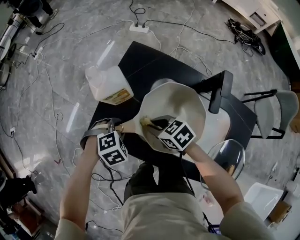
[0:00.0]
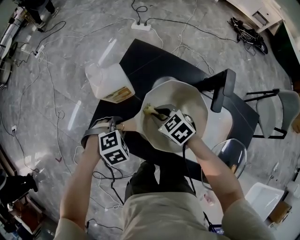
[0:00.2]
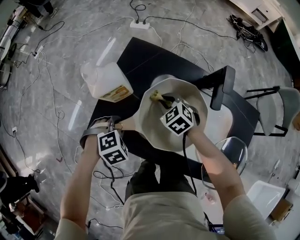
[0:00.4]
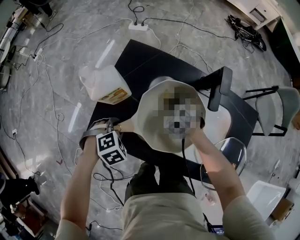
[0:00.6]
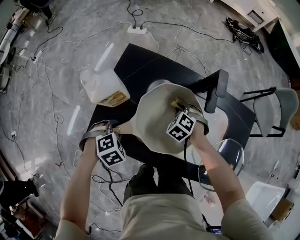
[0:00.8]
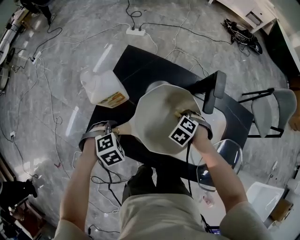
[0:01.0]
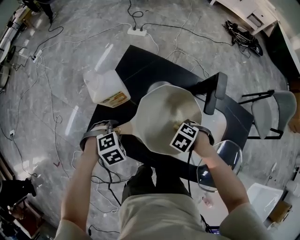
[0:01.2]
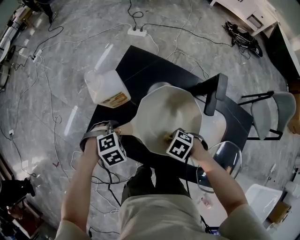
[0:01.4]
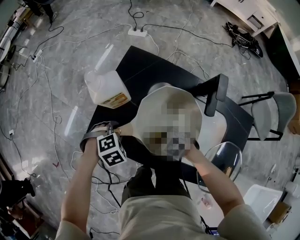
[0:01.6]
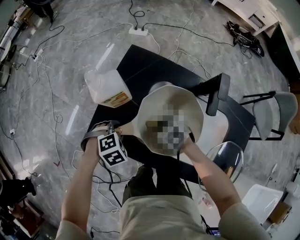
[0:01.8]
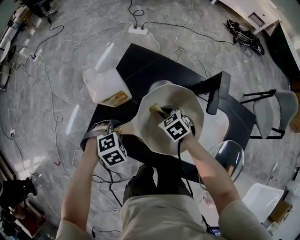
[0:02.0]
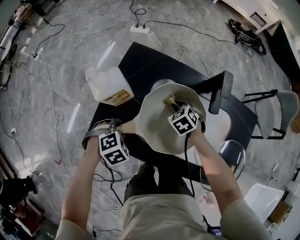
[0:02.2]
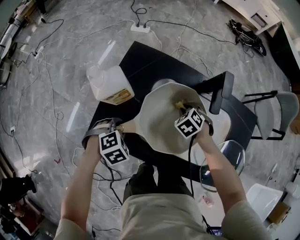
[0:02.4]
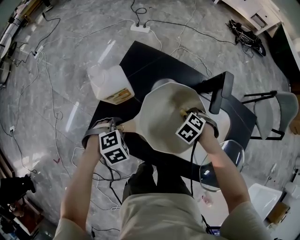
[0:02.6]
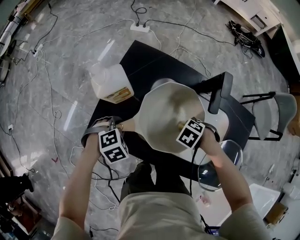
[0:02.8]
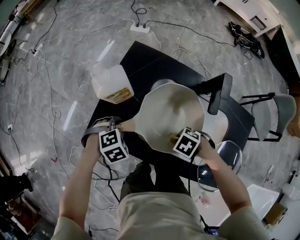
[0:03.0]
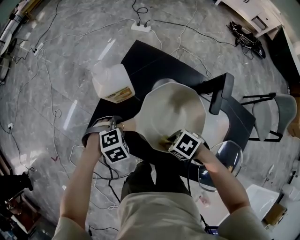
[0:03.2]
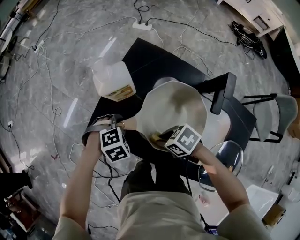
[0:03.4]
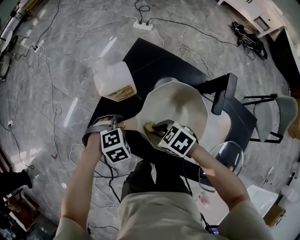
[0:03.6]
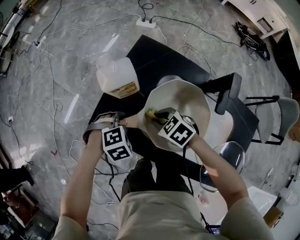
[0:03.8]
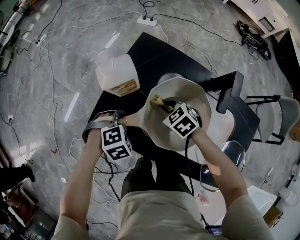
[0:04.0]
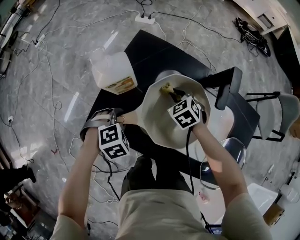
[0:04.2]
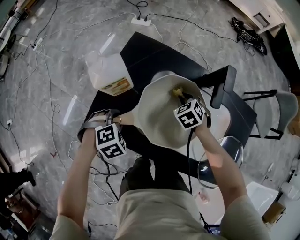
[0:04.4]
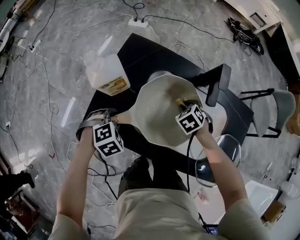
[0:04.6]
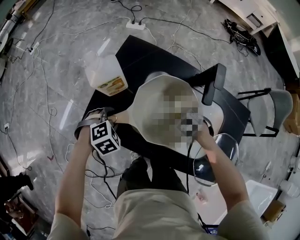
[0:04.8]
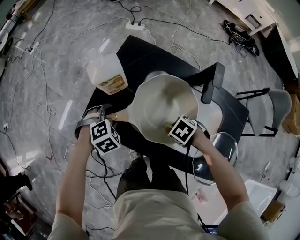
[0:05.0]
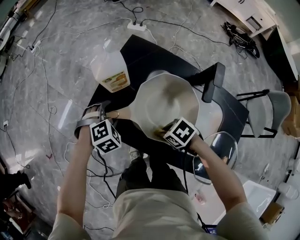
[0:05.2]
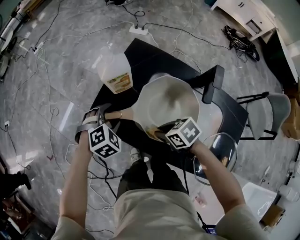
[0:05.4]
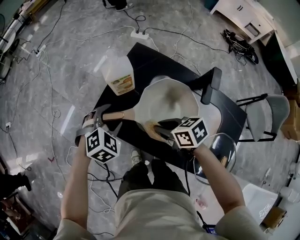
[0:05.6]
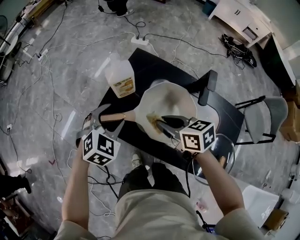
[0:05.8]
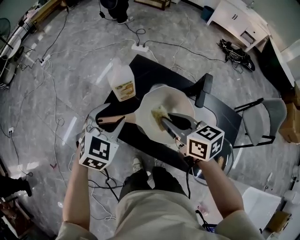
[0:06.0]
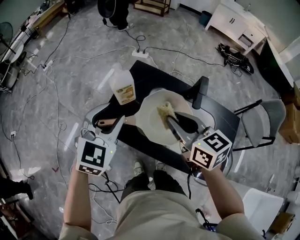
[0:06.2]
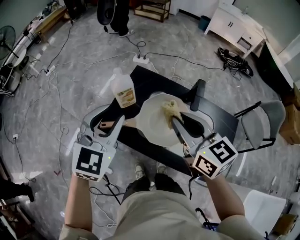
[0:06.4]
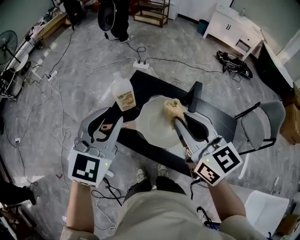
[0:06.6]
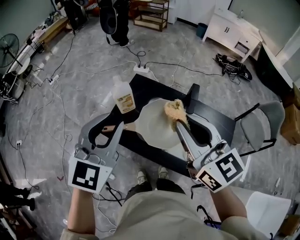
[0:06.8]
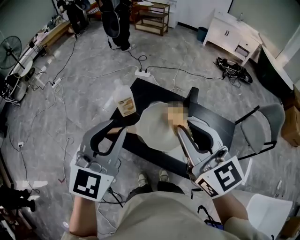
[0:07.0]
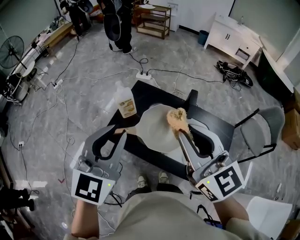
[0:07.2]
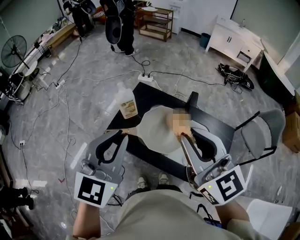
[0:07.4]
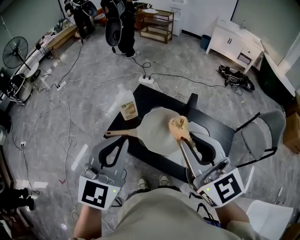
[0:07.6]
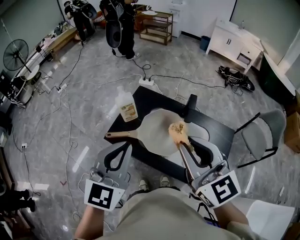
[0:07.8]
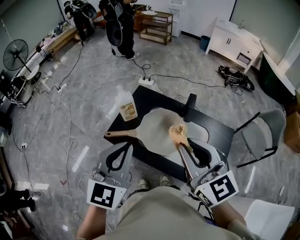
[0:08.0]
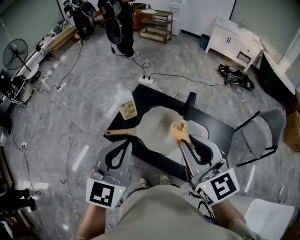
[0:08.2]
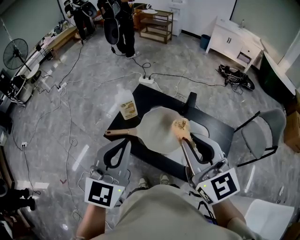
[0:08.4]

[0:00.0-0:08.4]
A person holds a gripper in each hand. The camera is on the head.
0:00.0 to 0:01.4: The right gripper changes place by about 15 cm, and tilts its fingers about 30 degrees downward.
0:02.8 to 0:04.2: The right gripper shifts by some 15 cm, and changes its angle by roughly 40 degrees.
0:04.2 to 0:05.6: The right gripper changes place by roughly 20 cm, and rotates about 40 degrees. The left gripper shifts some 10 cm upward, rotates some 20 degrees, and opens its fingers.
0:05.6 to 0:07.0: The grippers both shift upward by approximately 35 cm. The left gripper tips its fingers upward by some 40 degrees, and closes up. Meanwhile the right gripper points its fingers about 40 degrees further upward.
0:07.0 to 0:08.4: The left gripper travels backward by roughly 5 cm, and closes its fingers, while the right gripper moves roughly 5 cm.

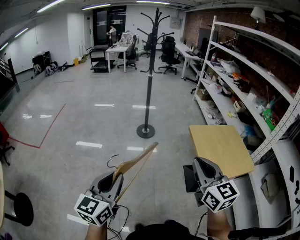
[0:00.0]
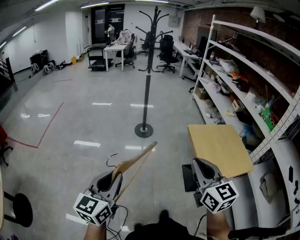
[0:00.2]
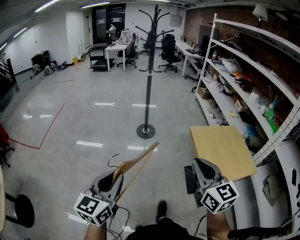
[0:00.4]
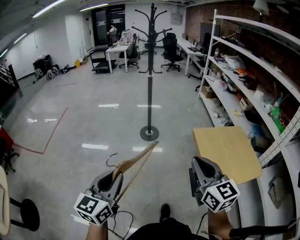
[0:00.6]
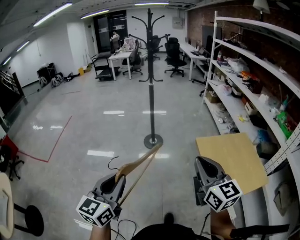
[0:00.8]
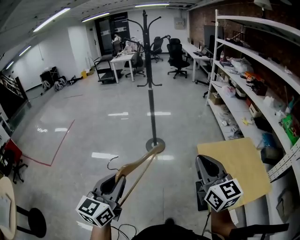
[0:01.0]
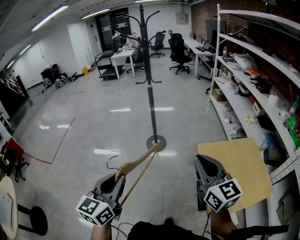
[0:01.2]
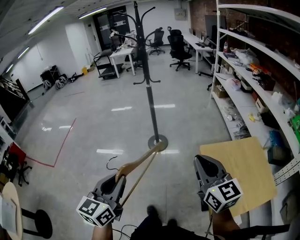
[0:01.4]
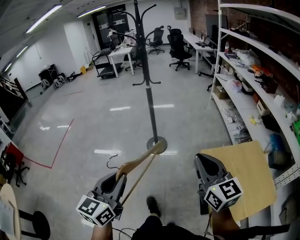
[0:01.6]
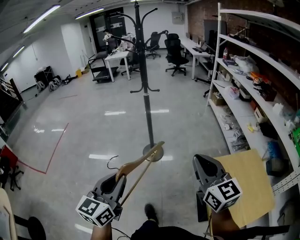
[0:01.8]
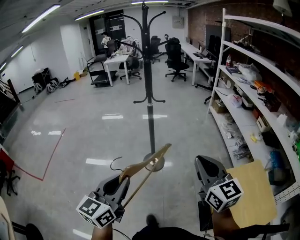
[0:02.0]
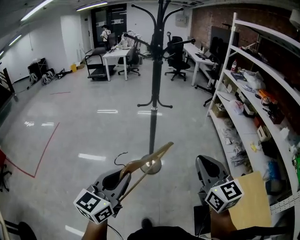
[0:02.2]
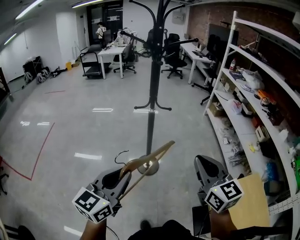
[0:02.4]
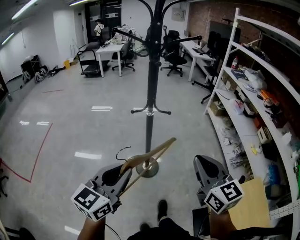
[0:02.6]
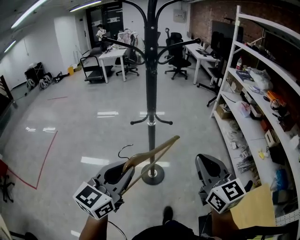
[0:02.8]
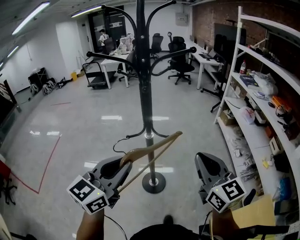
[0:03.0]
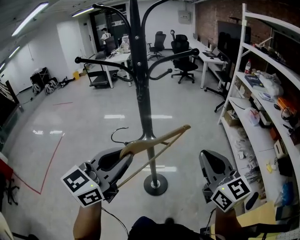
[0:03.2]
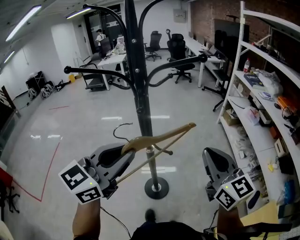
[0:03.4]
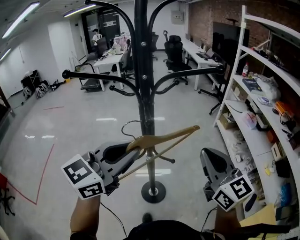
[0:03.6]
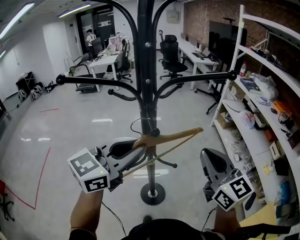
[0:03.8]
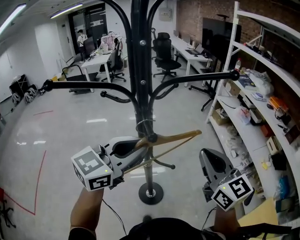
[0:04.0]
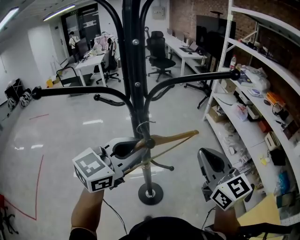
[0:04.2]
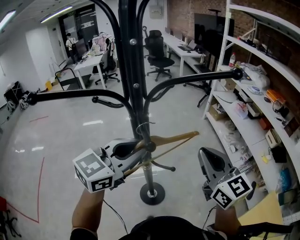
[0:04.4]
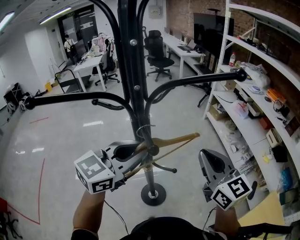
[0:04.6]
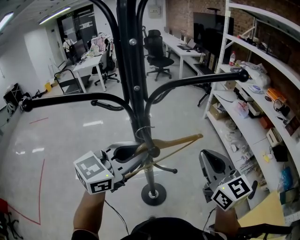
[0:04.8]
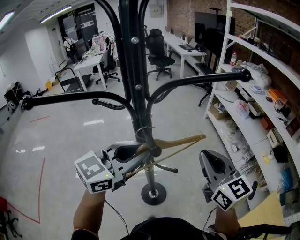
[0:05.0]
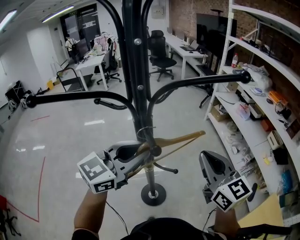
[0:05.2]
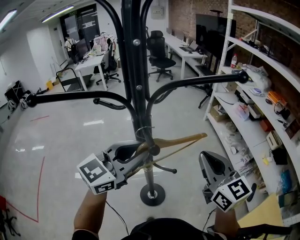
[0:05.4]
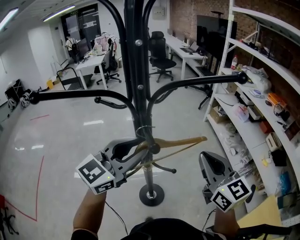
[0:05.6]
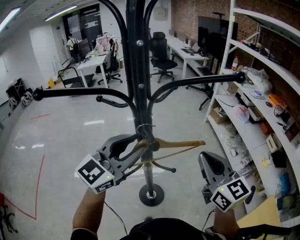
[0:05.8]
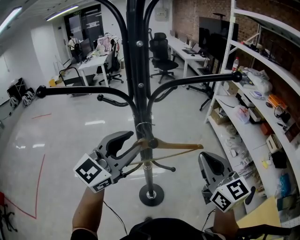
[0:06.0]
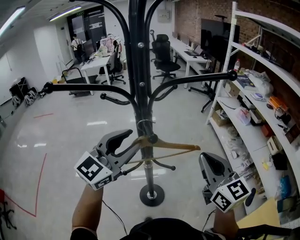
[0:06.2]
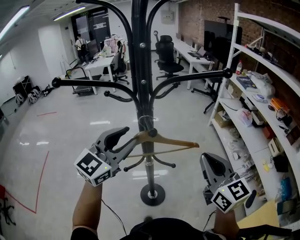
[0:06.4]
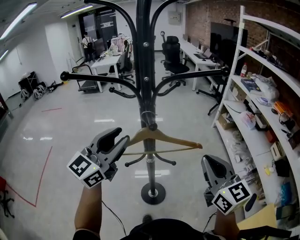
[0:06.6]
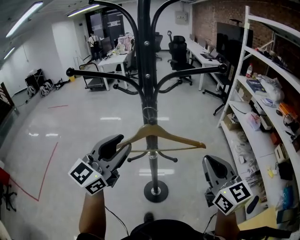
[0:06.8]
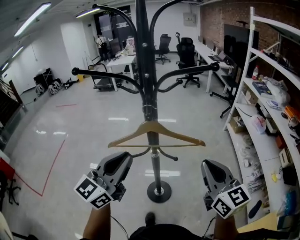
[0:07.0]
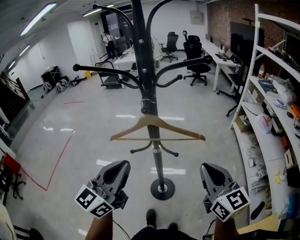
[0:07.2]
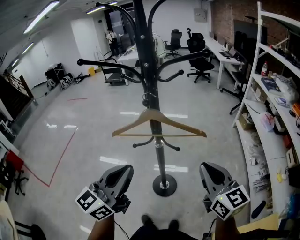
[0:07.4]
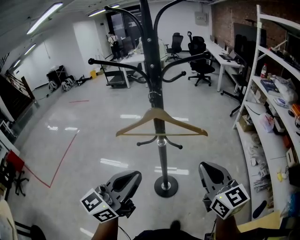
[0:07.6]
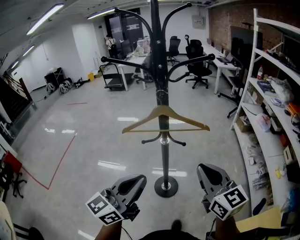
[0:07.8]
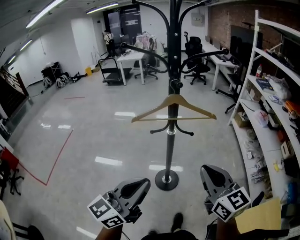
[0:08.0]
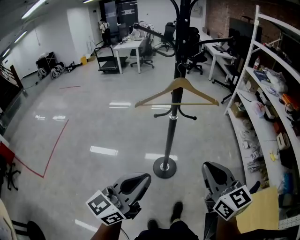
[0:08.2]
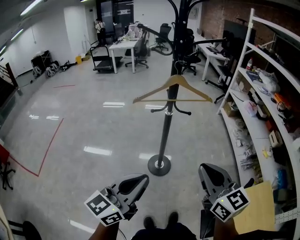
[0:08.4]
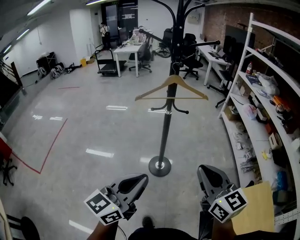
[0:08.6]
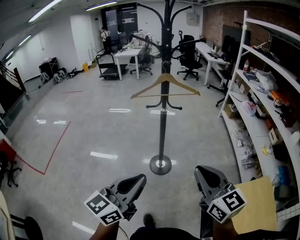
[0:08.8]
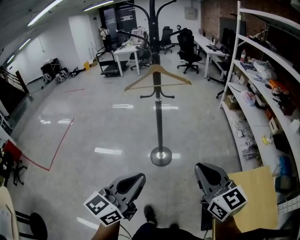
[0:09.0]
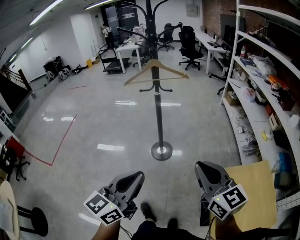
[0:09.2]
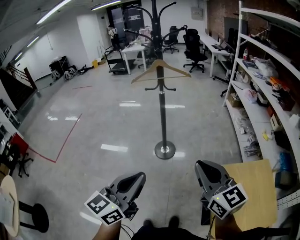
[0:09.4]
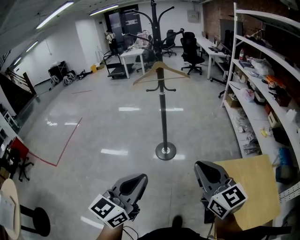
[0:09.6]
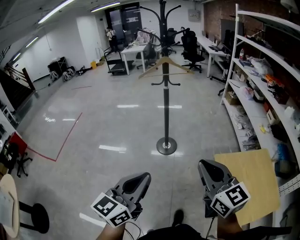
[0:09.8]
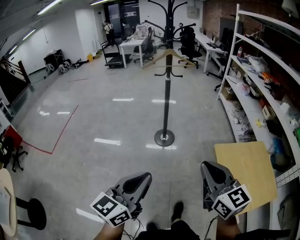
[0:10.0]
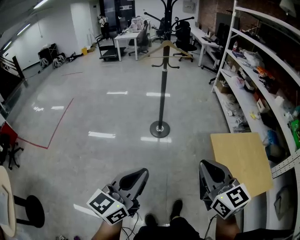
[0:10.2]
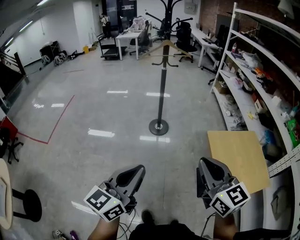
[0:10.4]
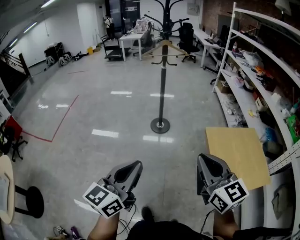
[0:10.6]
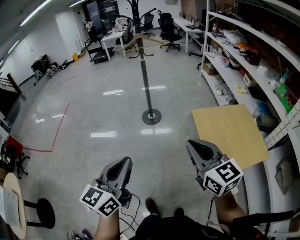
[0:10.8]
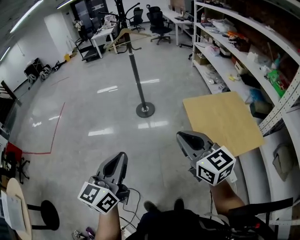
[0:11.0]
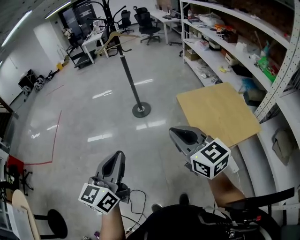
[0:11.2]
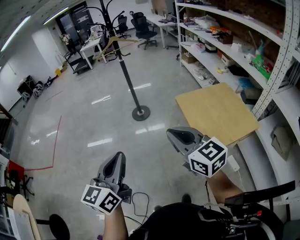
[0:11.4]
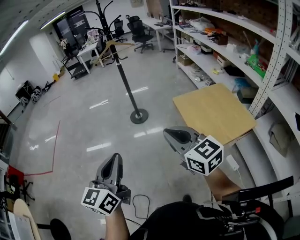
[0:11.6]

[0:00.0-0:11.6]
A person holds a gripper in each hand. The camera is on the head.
0:00.0 to 0:01.4: The grippers both shift forward by some 25 cm.
0:01.4 to 0:02.8: Both grippers are carried forward, some 40 cm.
0:02.8 to 0:04.4: Both grippers travel together forward, roughly 25 cm. The left gripper rotates some 30 degrees.
0:04.4 to 0:05.8: There are only small adjustments of the grippers.
0:05.8 to 0:07.2: The left gripper travels backward by some 15 cm, swivels some 30 degrees, and closes. Meanwhile the right gripper moves backward, some 10 cm.
0:07.2 to 0:08.8: Both grippers move backward, roughly 30 cm.
0:08.8 to 0:10.2: The two grippers go about 30 cm backward.
0:10.2 to 0:11.6: The two grippers go approximately 15 cm backward.

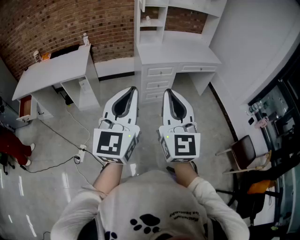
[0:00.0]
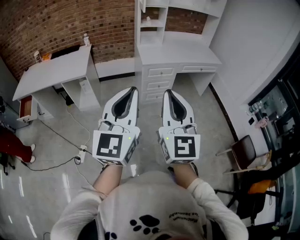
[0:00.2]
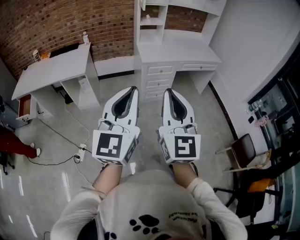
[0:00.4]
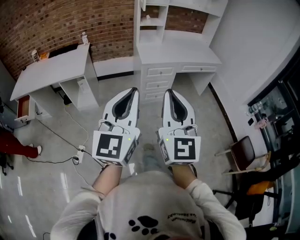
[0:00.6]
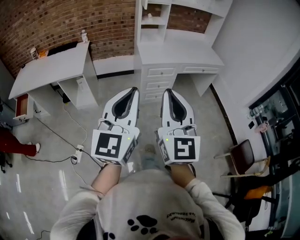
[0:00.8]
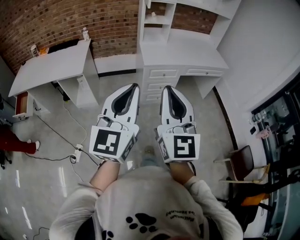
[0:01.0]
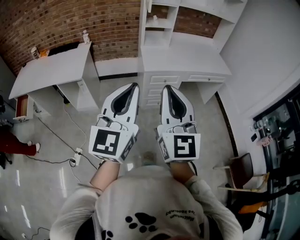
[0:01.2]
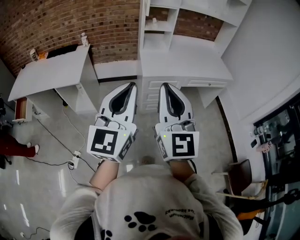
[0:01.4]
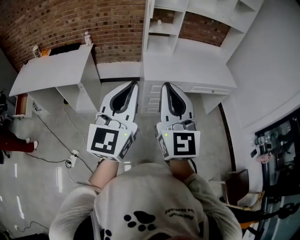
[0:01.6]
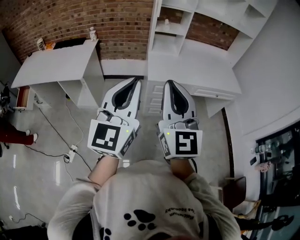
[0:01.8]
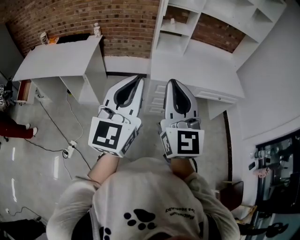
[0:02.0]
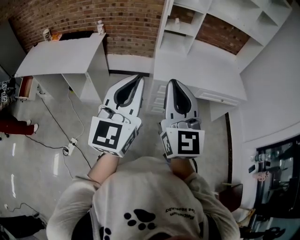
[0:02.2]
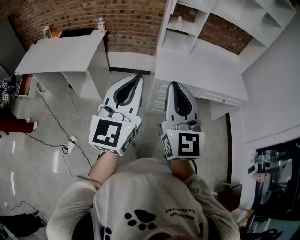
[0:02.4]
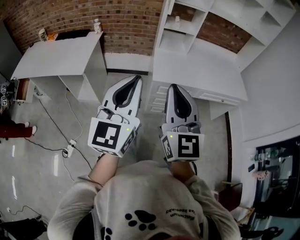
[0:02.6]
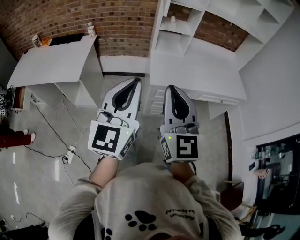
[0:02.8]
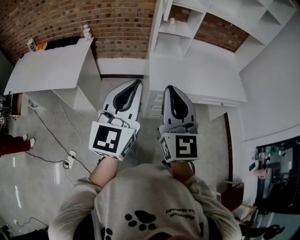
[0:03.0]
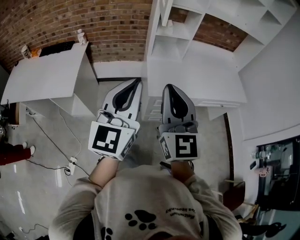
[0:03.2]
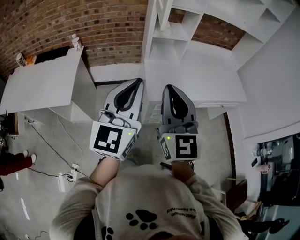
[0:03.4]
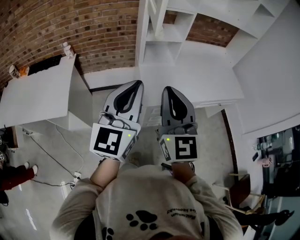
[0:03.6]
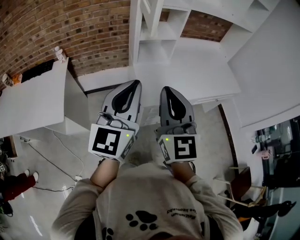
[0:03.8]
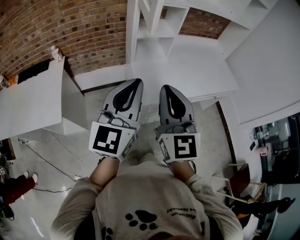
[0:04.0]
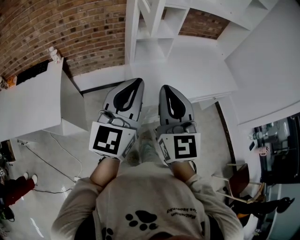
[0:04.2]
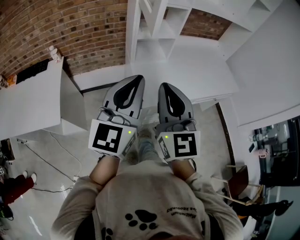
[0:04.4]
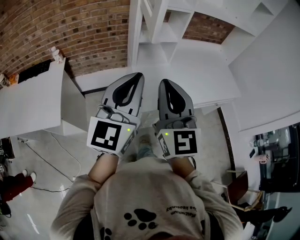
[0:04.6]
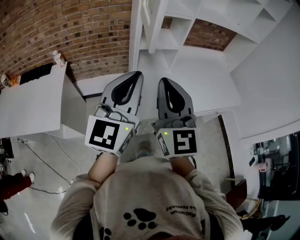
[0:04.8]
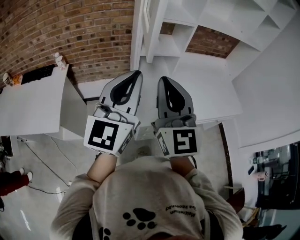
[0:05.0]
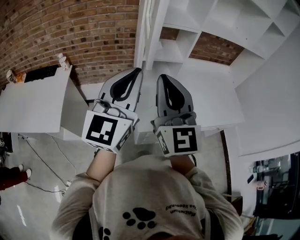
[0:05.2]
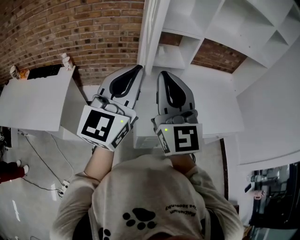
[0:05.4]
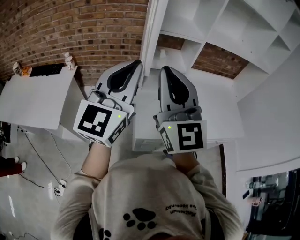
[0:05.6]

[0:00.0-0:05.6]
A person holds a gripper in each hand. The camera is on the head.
0:00.0 to 0:01.4: The two grippers go roughly 20 cm forward.
0:01.4 to 0:02.8: The grippers both shift forward by roughly 15 cm.
0:02.8 to 0:04.2: The two grippers go approximately 20 cm forward.
0:04.2 to 0:05.6: The grippers both shift forward and upward by about 15 cm. The right gripper rotates about 20 degrees.
